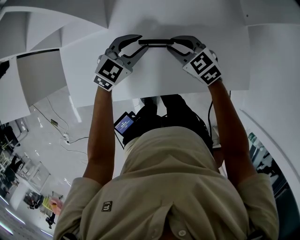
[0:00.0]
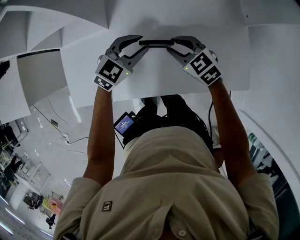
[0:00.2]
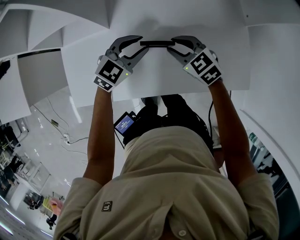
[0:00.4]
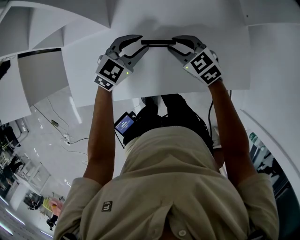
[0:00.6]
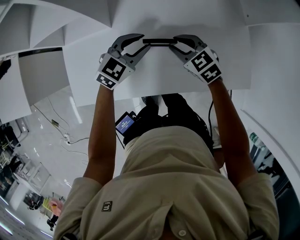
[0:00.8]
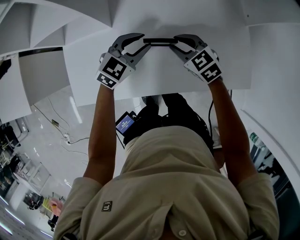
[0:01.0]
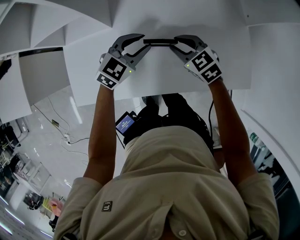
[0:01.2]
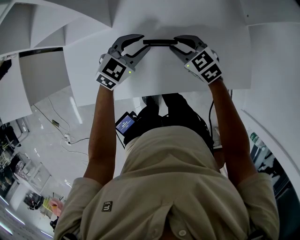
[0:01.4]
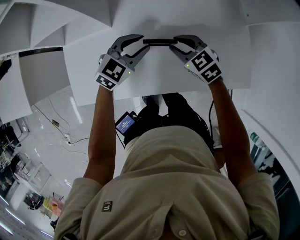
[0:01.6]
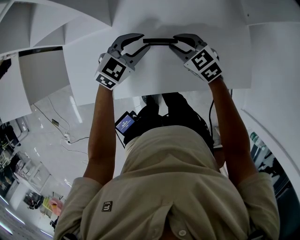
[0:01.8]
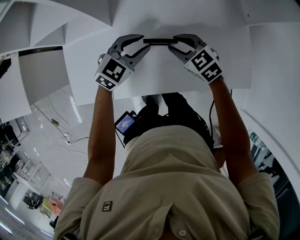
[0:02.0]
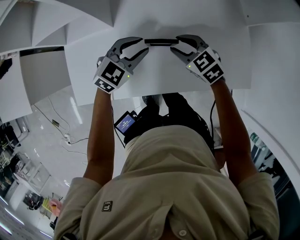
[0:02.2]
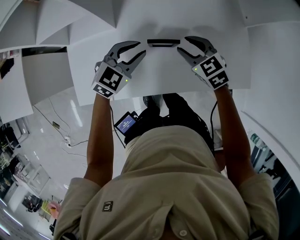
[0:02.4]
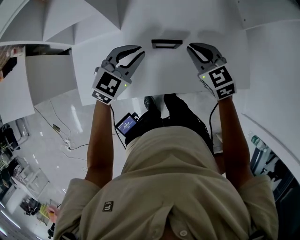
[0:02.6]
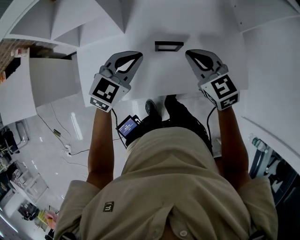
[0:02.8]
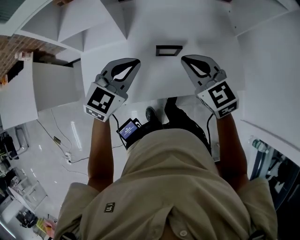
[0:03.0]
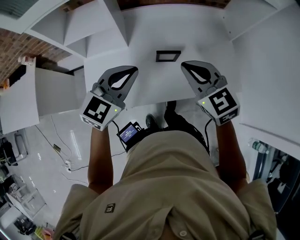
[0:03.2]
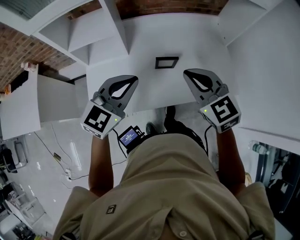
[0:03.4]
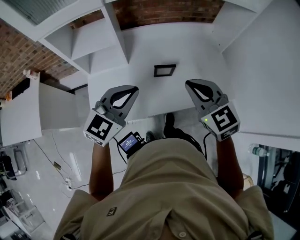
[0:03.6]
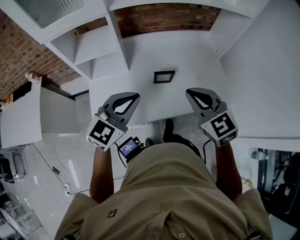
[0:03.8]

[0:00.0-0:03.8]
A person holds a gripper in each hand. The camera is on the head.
0:00.0 to 0:01.2: The two grippers keep their place.
0:01.2 to 0:02.6: Both grippers move upward, some 5 cm.
0:02.6 to 0:03.8: The grippers both shift upward and backward by some 25 cm.

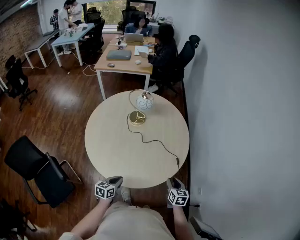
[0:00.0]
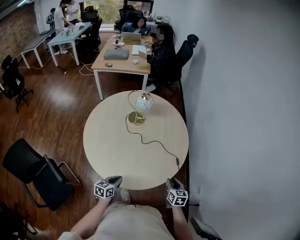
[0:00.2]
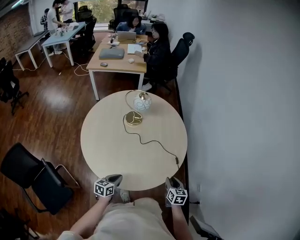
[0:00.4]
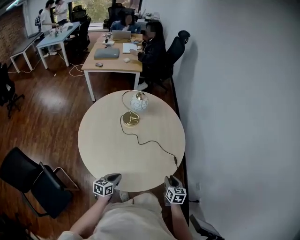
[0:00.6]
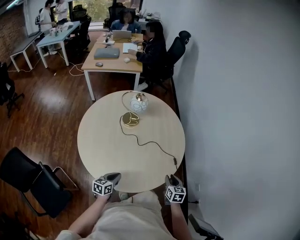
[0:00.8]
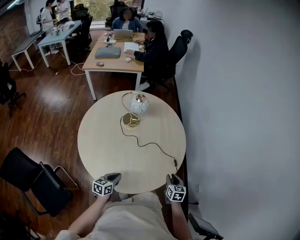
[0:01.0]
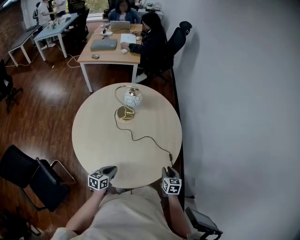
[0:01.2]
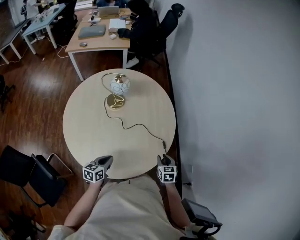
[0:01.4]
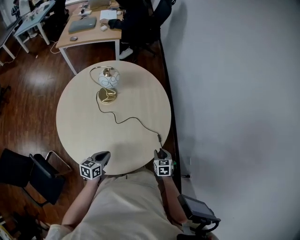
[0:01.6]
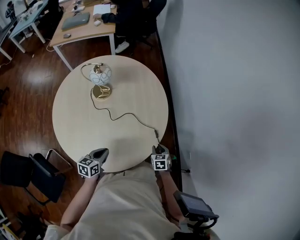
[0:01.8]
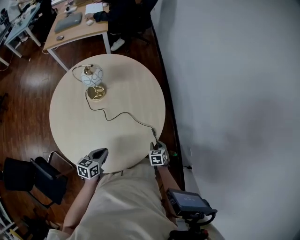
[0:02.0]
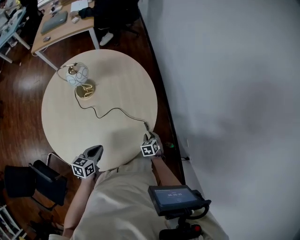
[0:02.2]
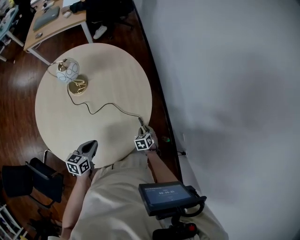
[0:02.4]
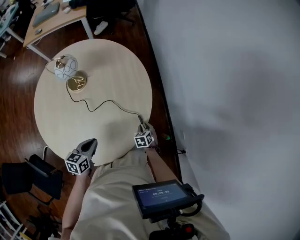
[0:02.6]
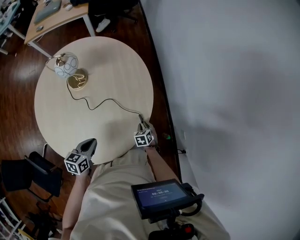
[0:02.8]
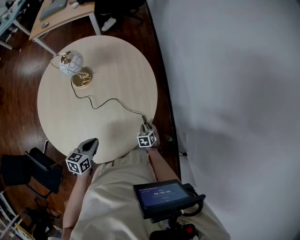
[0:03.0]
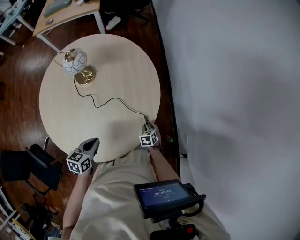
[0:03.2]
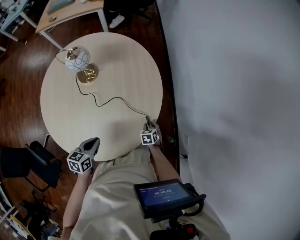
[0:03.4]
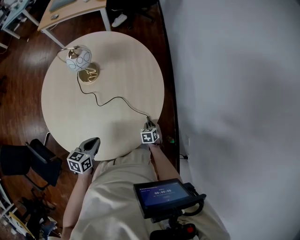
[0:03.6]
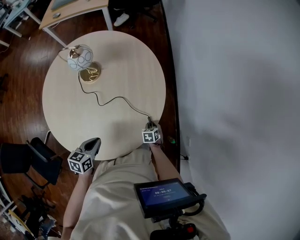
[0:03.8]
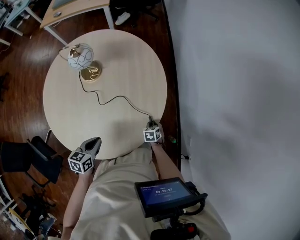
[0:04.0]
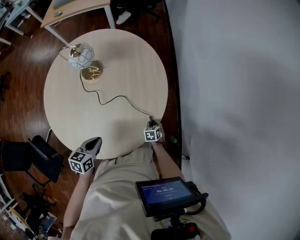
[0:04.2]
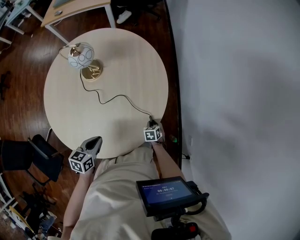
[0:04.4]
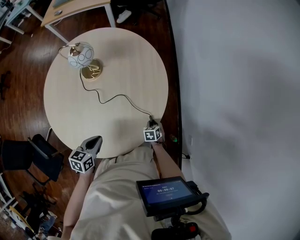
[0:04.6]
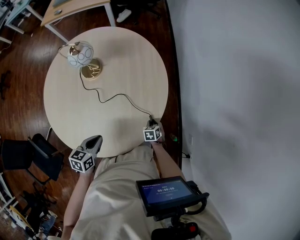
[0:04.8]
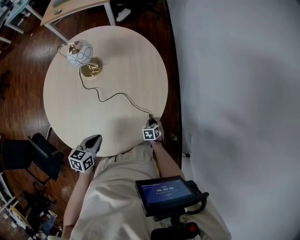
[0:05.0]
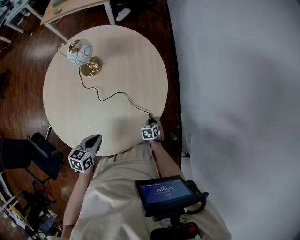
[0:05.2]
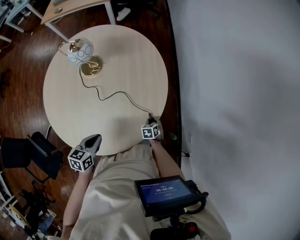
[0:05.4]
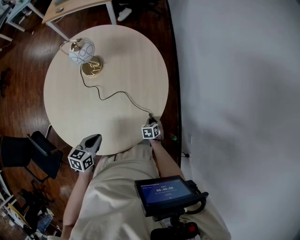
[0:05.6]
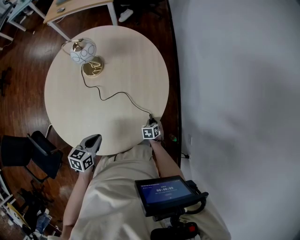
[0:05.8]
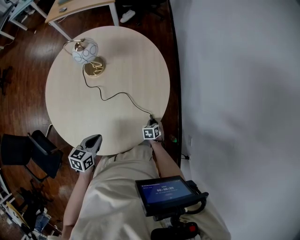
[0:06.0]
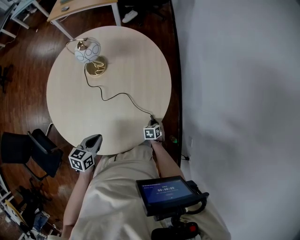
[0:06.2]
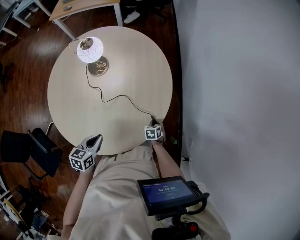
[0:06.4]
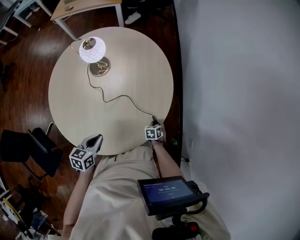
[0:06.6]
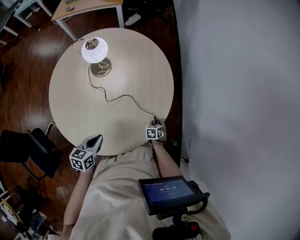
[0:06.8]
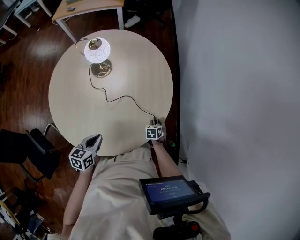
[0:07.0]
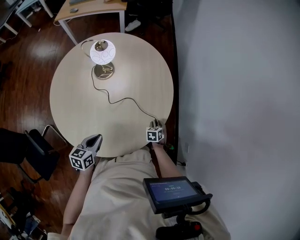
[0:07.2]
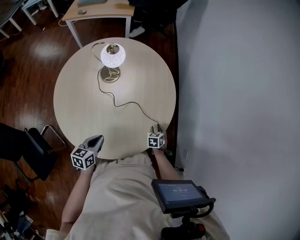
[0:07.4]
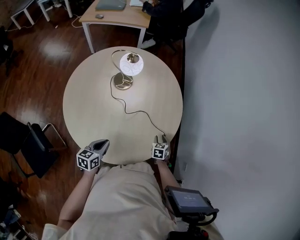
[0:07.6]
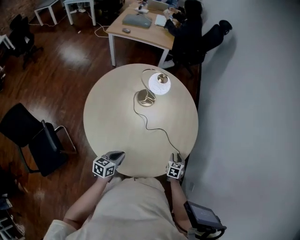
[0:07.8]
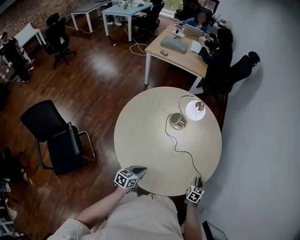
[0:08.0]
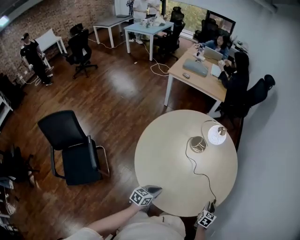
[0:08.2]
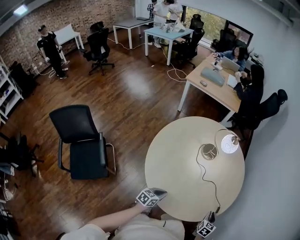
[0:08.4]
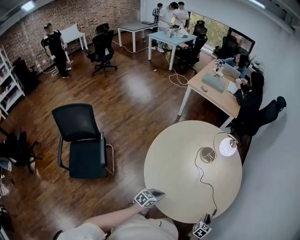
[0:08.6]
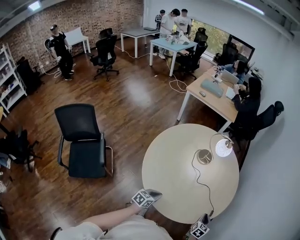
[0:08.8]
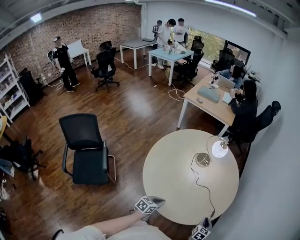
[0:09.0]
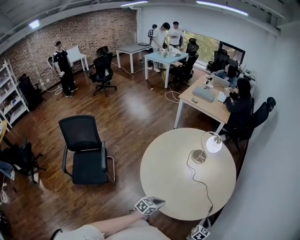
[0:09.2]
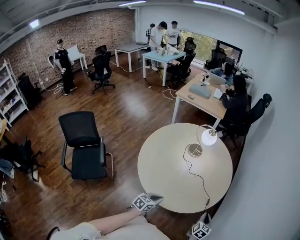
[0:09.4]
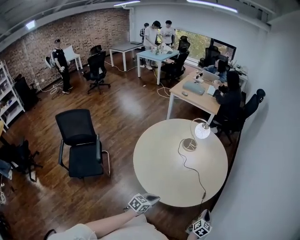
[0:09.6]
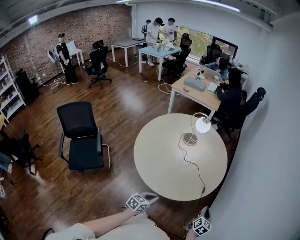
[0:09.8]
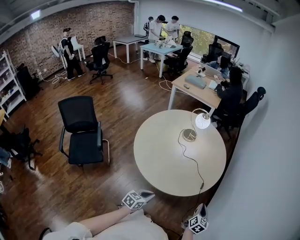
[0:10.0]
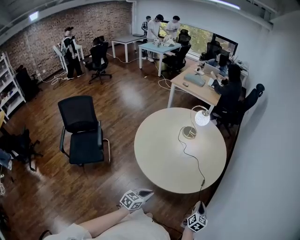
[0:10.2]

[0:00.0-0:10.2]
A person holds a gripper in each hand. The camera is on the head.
0:00.0 to 0:01.4: The two grippers go some 10 cm forward.
0:01.4 to 0:03.0: The right gripper travels downward and forward by some 20 cm. Meanwhile the left gripper heads to the right and forward, covering approximately 10 cm.
0:03.0 to 0:04.4: The right gripper shifts by approximately 5 cm.
0:04.4 to 0:05.8: Both grippers stay about where they are.
0:05.8 to 0:07.2: The right gripper moves approximately 5 cm. Meanwhile the left gripper changes place by roughly 5 cm.
0:07.2 to 0:08.8: The right gripper is displaced upward, backward and to the left by roughly 25 cm, changes its angle by some 30 degrees, and closes its fingers. Meanwhile the left gripper travels backward and to the left by approximately 15 cm.
0:08.8 to 0:10.2: The left gripper shifts approximately 25 cm to the right and backward; the right gripper heads to the right, backward and upward, covering roughly 20 cm, and rotates roughly 20 degrees.

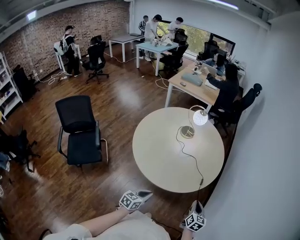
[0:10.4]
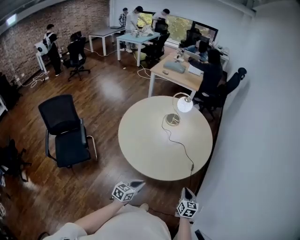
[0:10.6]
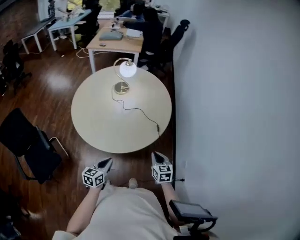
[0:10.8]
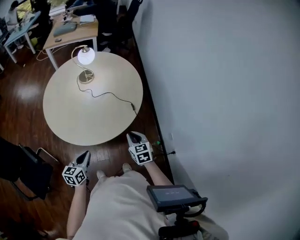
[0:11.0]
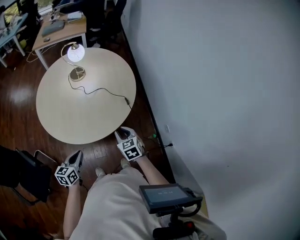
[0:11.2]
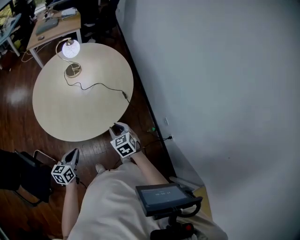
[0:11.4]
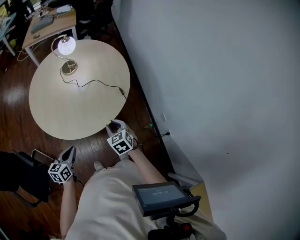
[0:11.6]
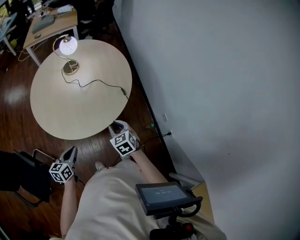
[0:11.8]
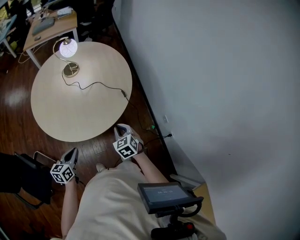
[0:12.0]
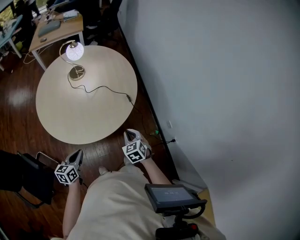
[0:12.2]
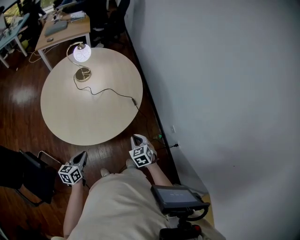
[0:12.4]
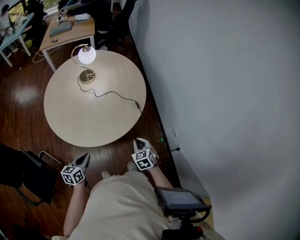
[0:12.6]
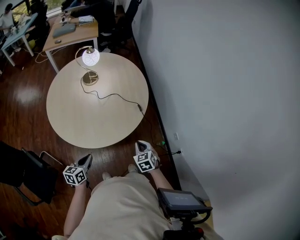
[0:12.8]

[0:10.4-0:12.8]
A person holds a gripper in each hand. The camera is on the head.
0:10.4 to 0:11.6: The grippers both shift to the left by about 15 cm. The right gripper changes its angle by some 20 degrees, and opens up.
0:11.6 to 0:12.8: The right gripper heads to the right, covering approximately 5 cm, and closes.

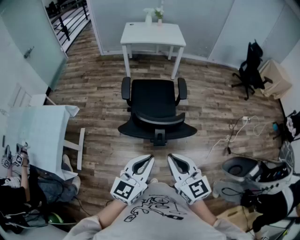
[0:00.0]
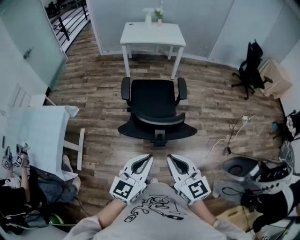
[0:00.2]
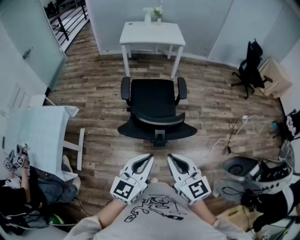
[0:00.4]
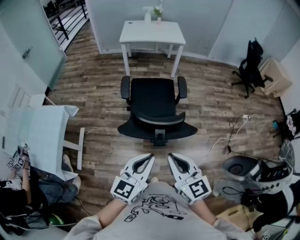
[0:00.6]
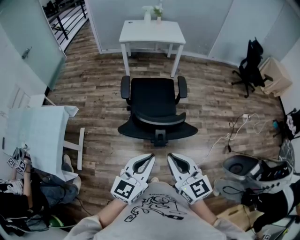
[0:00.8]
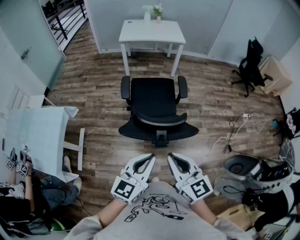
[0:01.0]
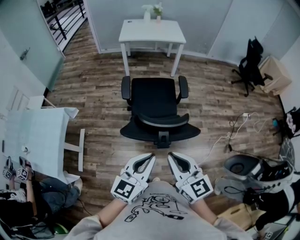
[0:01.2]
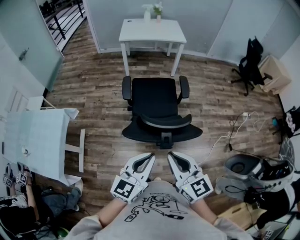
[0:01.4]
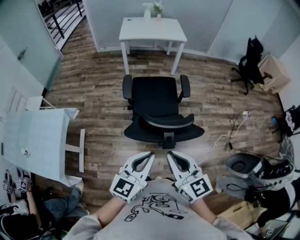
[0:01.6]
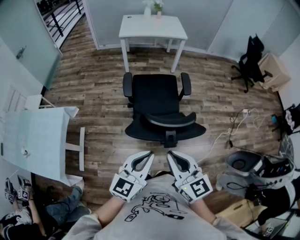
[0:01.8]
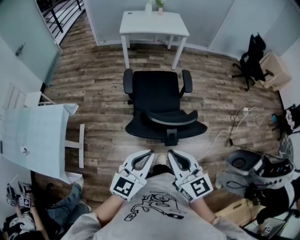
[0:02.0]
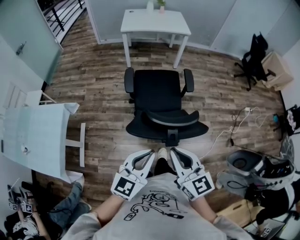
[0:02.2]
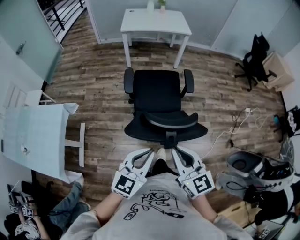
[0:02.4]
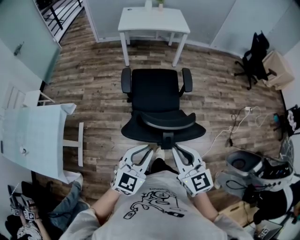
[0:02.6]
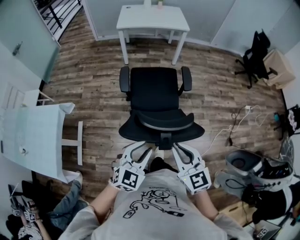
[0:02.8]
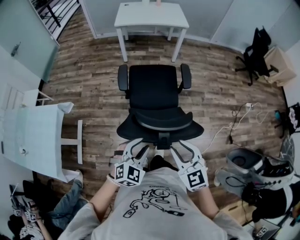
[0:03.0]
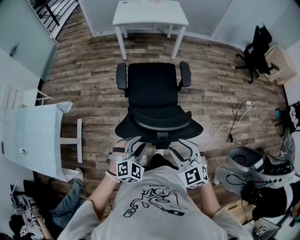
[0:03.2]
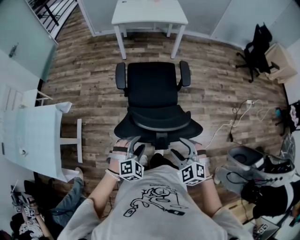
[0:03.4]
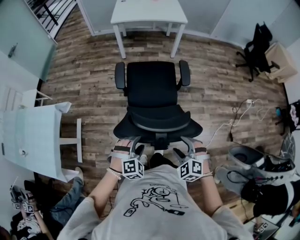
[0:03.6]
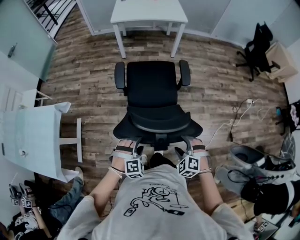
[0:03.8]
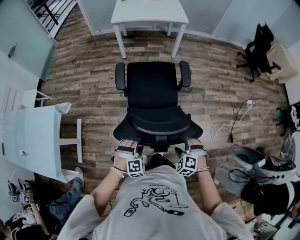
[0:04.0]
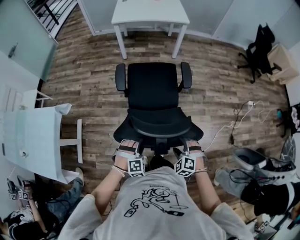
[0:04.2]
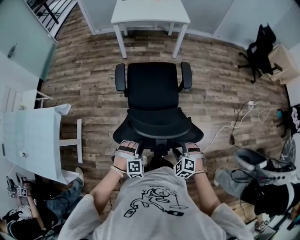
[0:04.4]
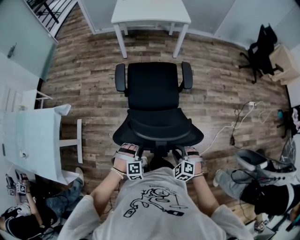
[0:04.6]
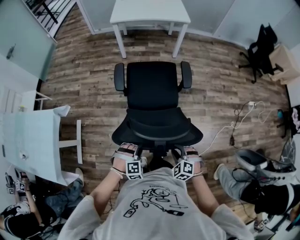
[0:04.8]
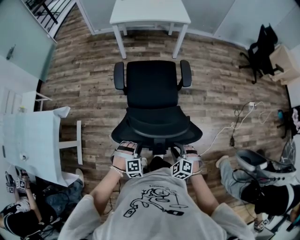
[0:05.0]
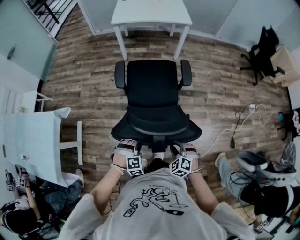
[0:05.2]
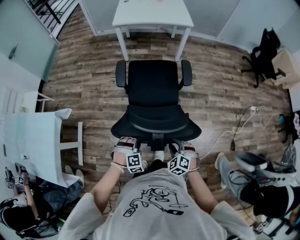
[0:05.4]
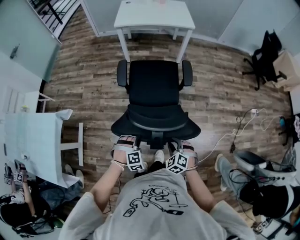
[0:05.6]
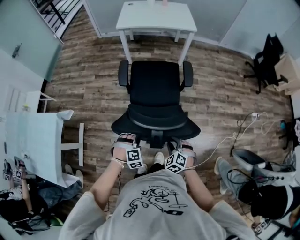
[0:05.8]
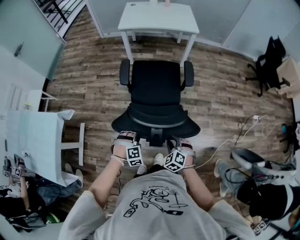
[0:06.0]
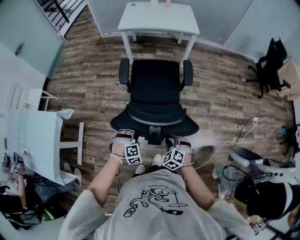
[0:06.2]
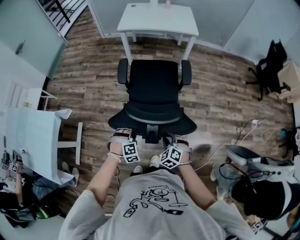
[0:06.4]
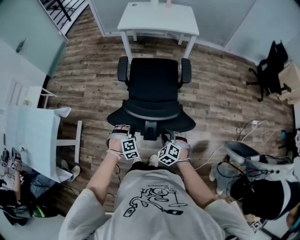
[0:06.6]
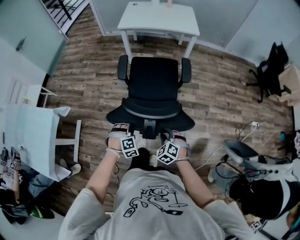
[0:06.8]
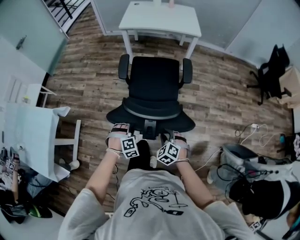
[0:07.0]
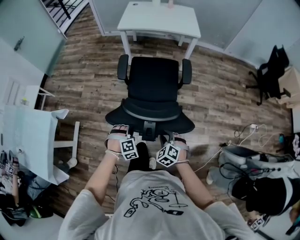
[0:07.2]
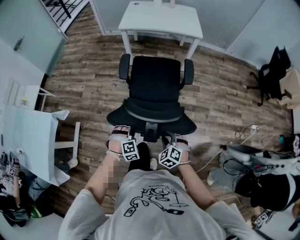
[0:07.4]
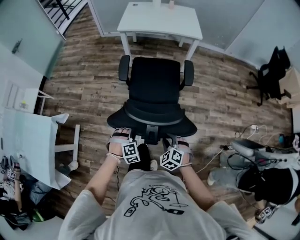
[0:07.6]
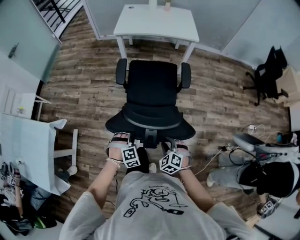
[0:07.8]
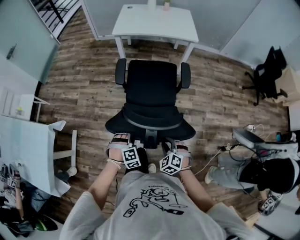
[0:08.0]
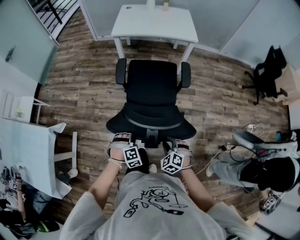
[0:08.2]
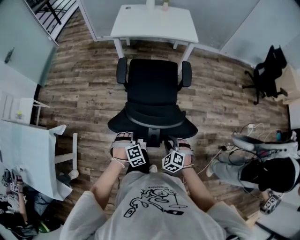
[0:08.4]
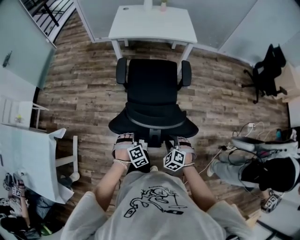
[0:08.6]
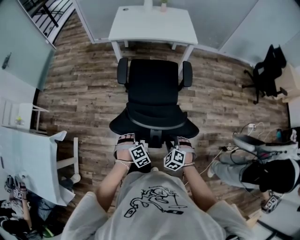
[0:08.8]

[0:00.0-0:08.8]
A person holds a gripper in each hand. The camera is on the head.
0:00.0 to 0:01.4: The right gripper changes place by roughly 5 cm. Meanwhile the left gripper changes place by some 5 cm.
0:01.4 to 0:03.0: Both grippers travel together downward and forward, approximately 15 cm. The left gripper changes its angle by about 40 degrees, and opens up. The right gripper swivels roughly 30 degrees.
0:03.0 to 0:04.4: Both grippers move downward, some 20 cm. The left gripper changes its angle by approximately 40 degrees. Meanwhile the right gripper tips its fingers downward by about 30 degrees.
0:04.4 to 0:05.8: Both grippers move forward, roughly 10 cm. The left gripper closes its fingers.
0:05.8 to 0:07.4: The two grippers go about 10 cm forward.
0:07.4 to 0:08.8: The grippers both shift forward by about 10 cm.
